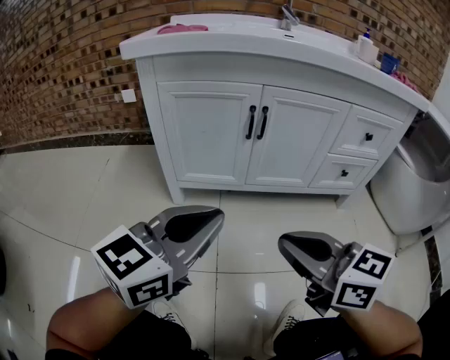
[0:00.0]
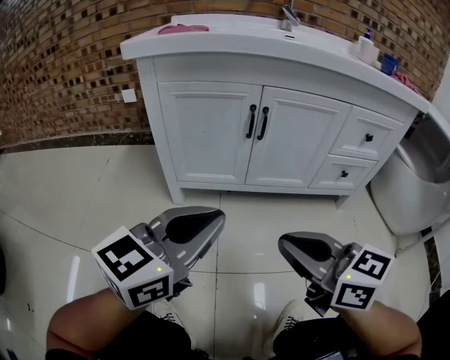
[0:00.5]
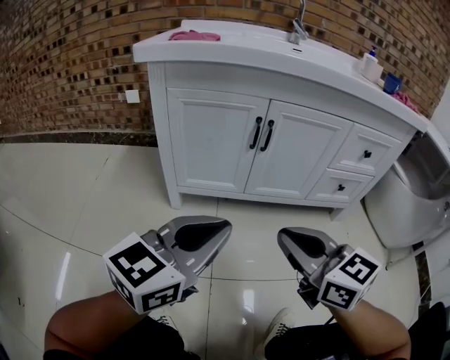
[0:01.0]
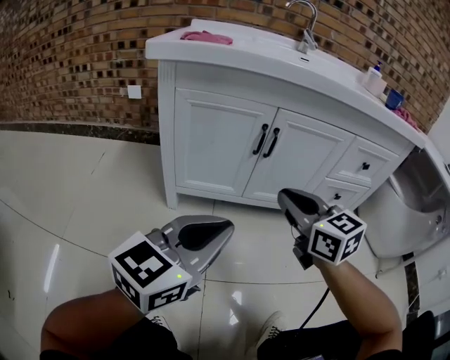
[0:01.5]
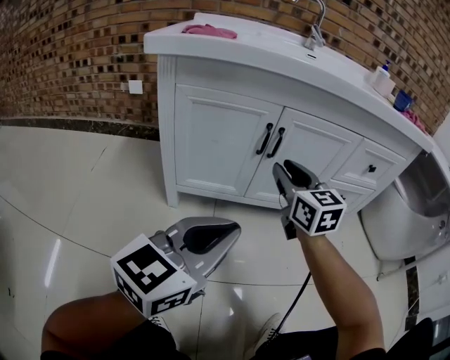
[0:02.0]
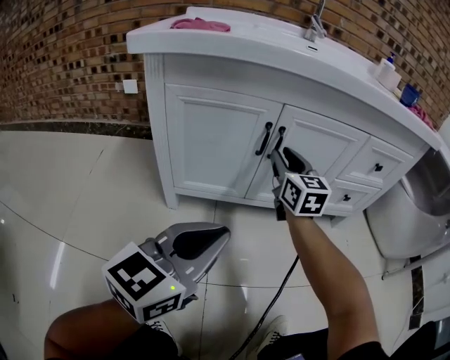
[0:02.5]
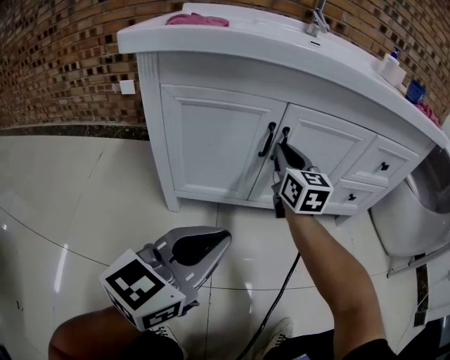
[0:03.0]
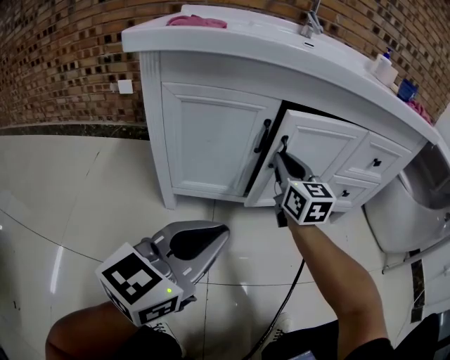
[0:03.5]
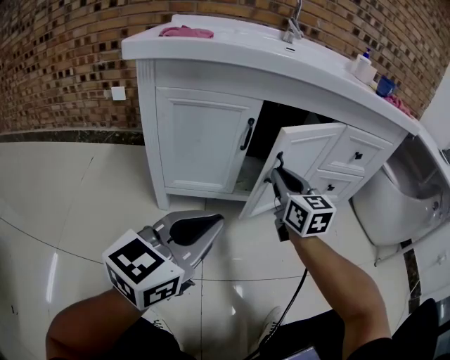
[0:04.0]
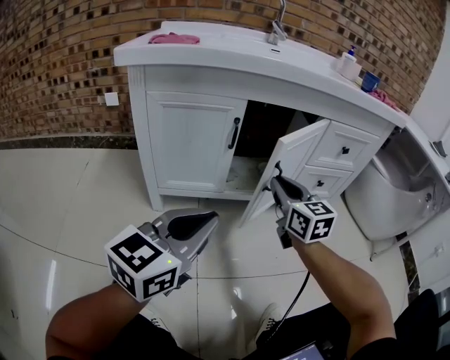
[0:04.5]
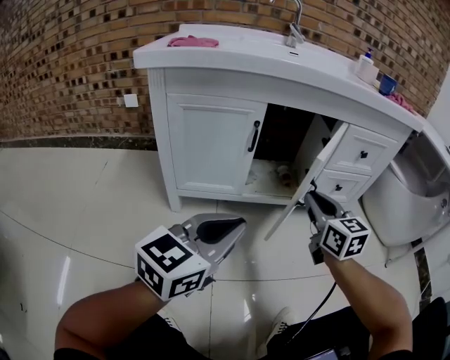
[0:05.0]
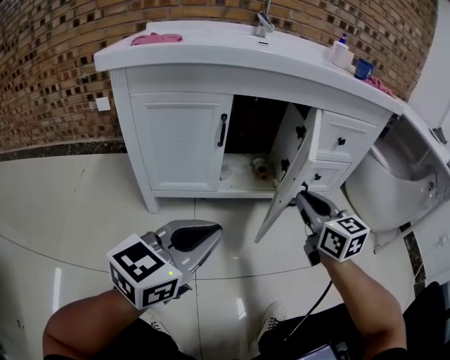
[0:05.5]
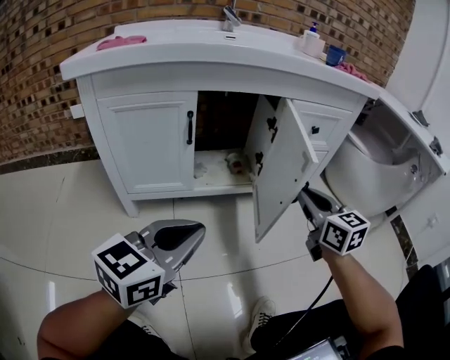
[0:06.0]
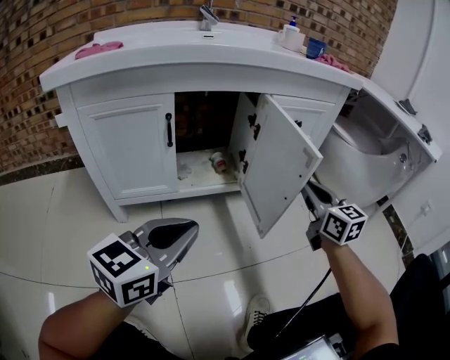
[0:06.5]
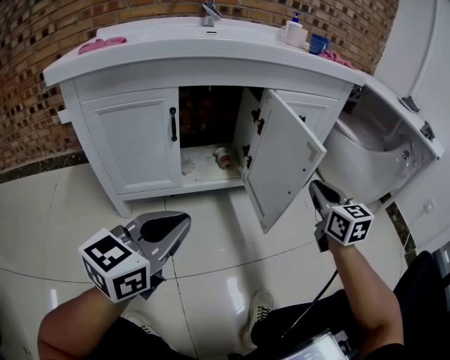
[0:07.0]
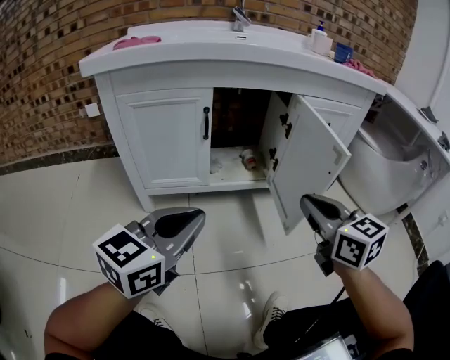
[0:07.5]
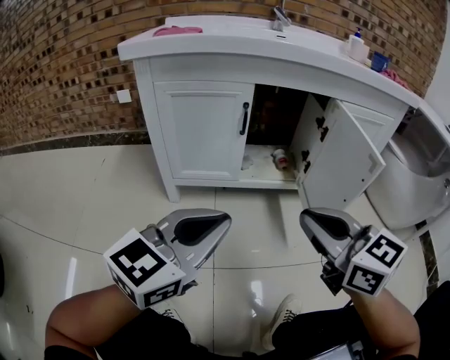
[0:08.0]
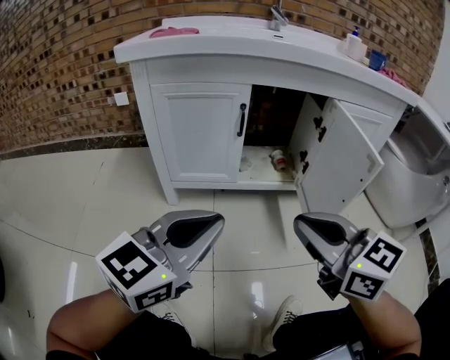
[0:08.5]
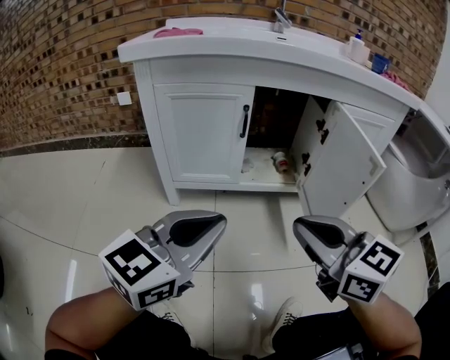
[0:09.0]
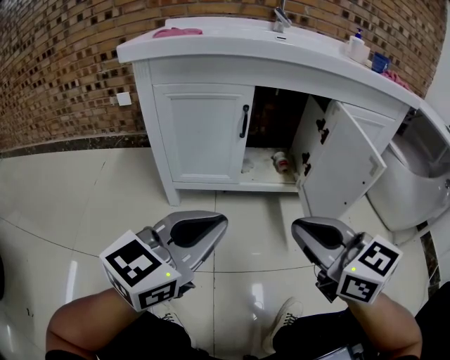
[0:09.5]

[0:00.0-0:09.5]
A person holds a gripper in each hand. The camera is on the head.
0:00.0 to 0:02.0: The right gripper shifts some 25 cm forward, rotates about 30 degrees, and opens its fingers.
0:02.0 to 0:04.0: The right gripper reaches some 10 cm forward, then returns.
0:04.0 to 0:05.5: The left gripper travels to the right by roughly 5 cm. The right gripper goes roughly 15 cm to the right and backward.
0:05.5 to 0:07.5: The right gripper moves backward, some 10 cm, and travels to the right and back again, roughly 15 cm each way.
0:07.5 to 0:09.5: The right gripper travels to the left and backward by about 15 cm.

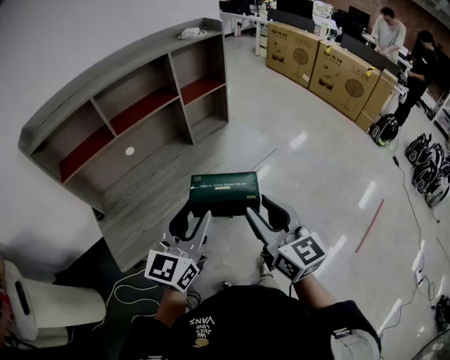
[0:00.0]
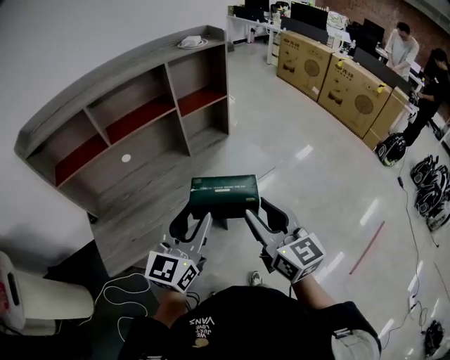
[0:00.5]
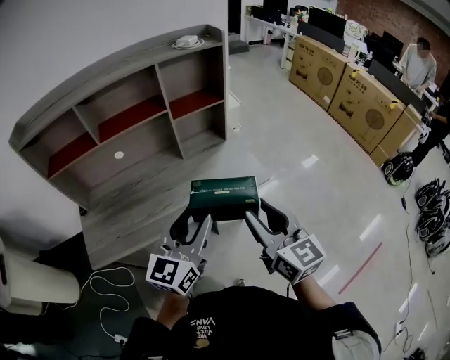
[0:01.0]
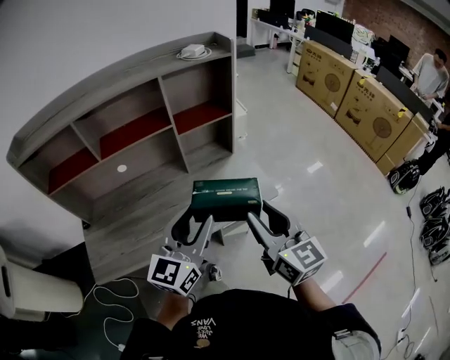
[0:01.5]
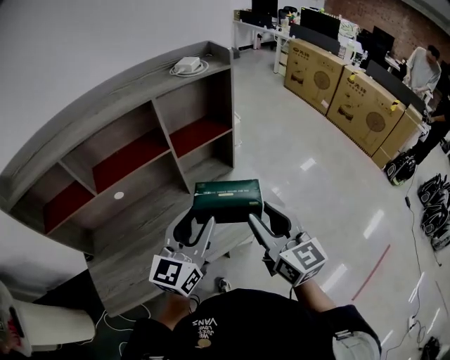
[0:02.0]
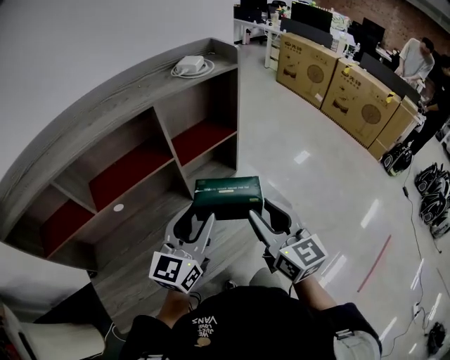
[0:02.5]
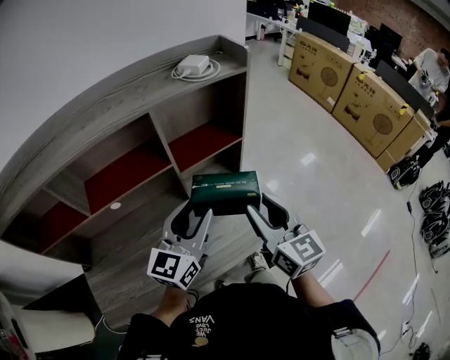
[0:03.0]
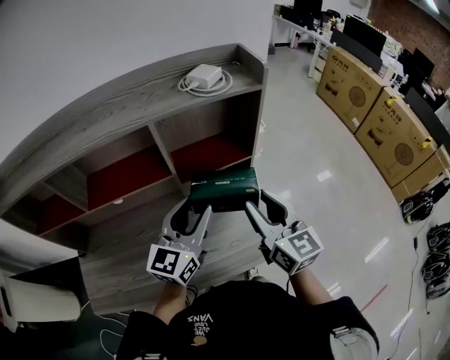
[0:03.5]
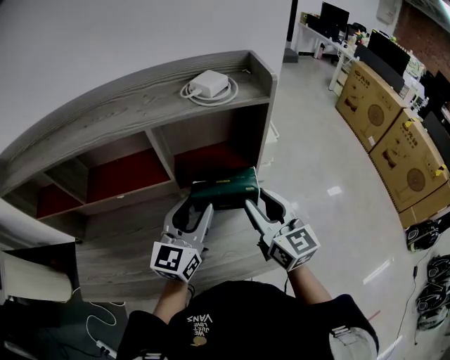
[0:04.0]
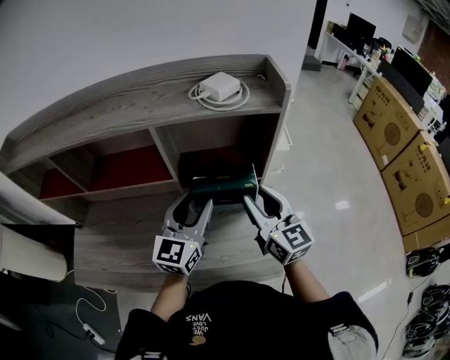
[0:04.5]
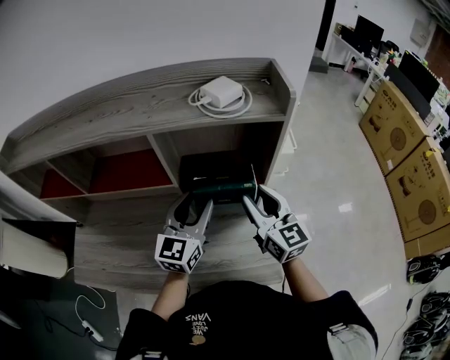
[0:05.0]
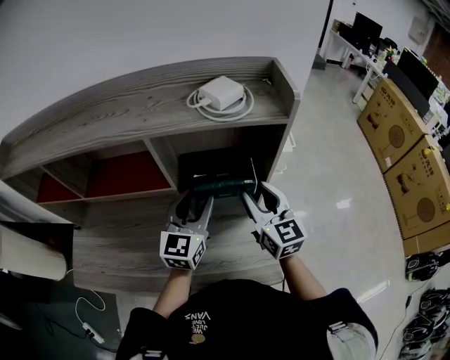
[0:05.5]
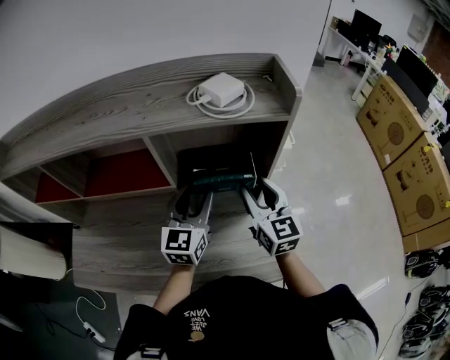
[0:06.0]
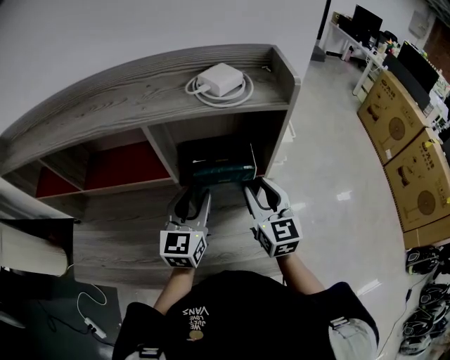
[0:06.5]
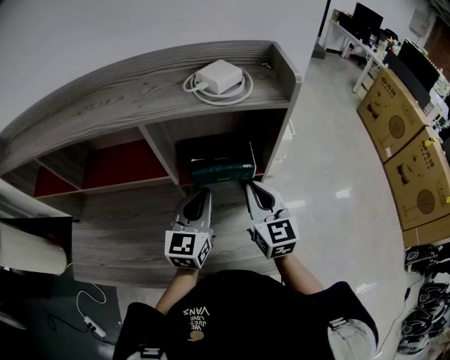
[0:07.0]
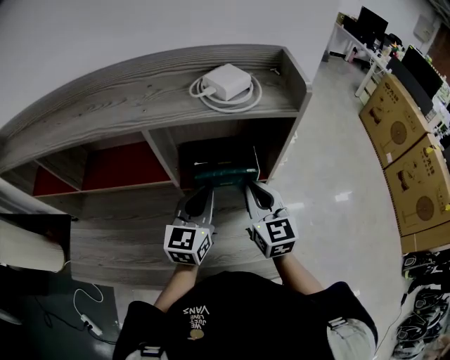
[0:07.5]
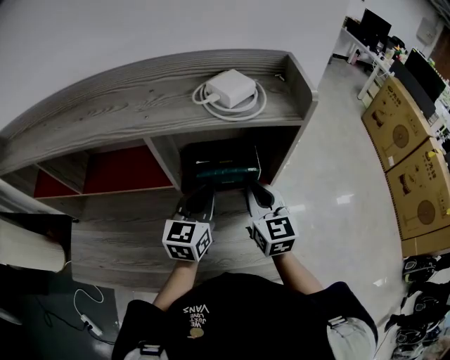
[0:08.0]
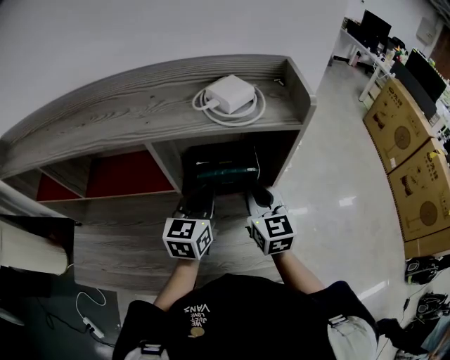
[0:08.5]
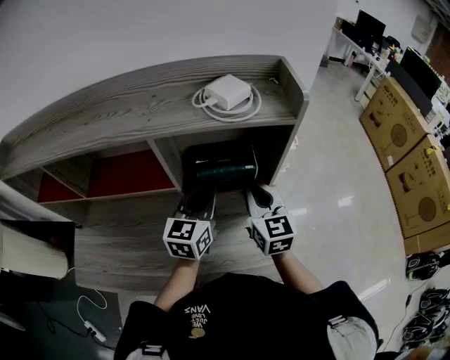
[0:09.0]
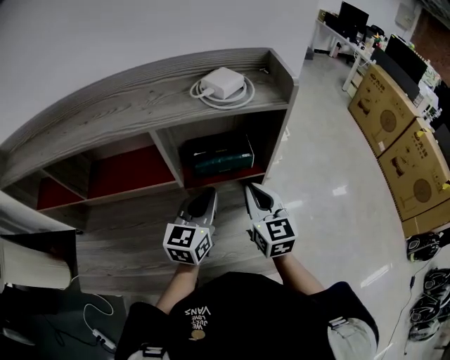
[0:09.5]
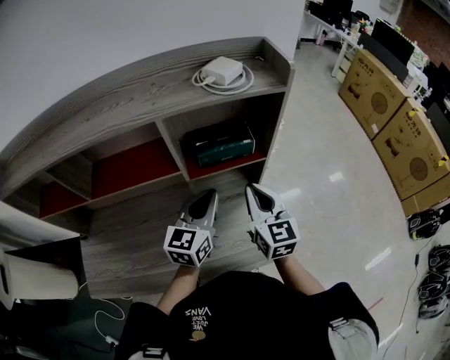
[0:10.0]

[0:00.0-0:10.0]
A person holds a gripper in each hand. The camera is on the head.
0:00.0 to 0:02.0: Both grippers move forward, about 25 cm.
0:02.0 to 0:04.0: The two grippers go some 25 cm forward. The left gripper changes its angle by some 20 degrees.
0:04.0 to 0:06.0: The grippers both shift forward by some 10 cm.
0:06.0 to 0:08.0: The right gripper closes. Meanwhile the left gripper closes.
0:08.0 to 0:10.0: Both grippers move backward, roughly 10 cm.

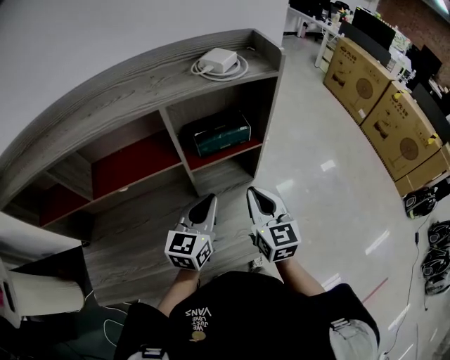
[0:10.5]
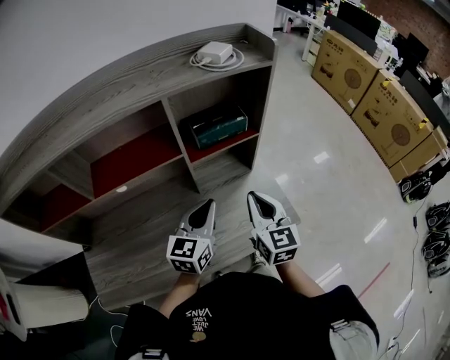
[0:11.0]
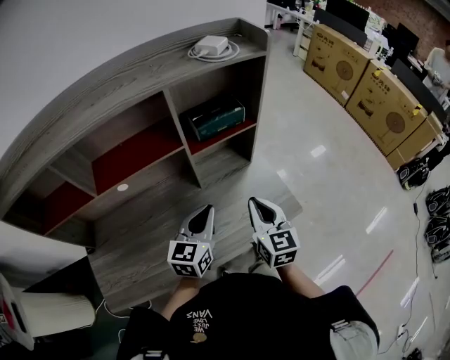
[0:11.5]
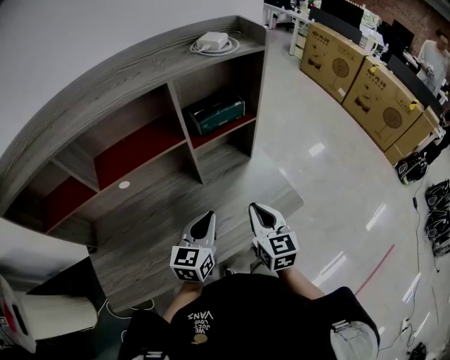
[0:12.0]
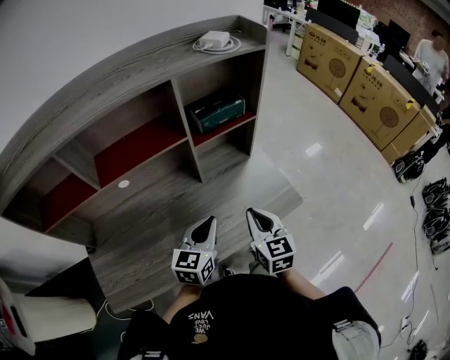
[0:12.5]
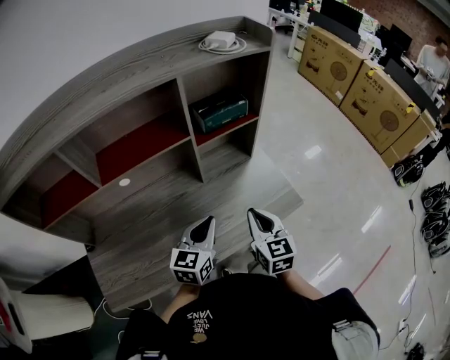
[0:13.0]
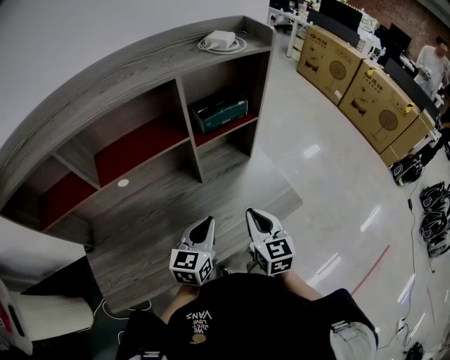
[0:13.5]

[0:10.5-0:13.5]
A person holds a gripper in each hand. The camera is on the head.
0:10.5 to 0:12.0: Both grippers move backward and downward, roughly 15 cm.
0:12.0 to 0:13.5: The grippers move only a little.

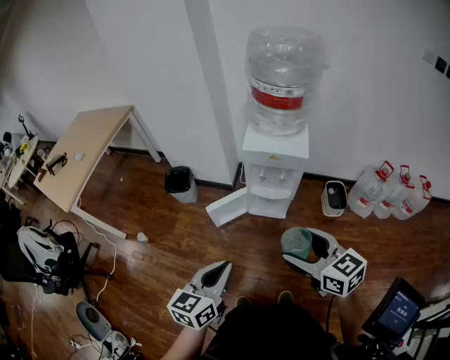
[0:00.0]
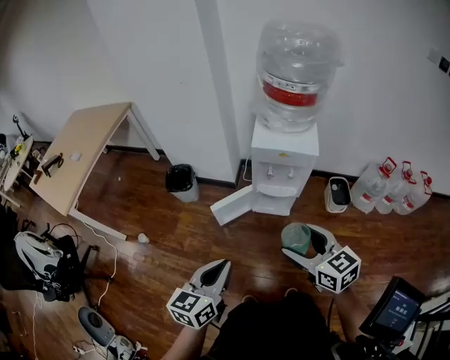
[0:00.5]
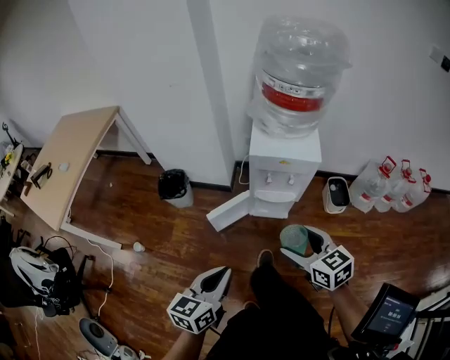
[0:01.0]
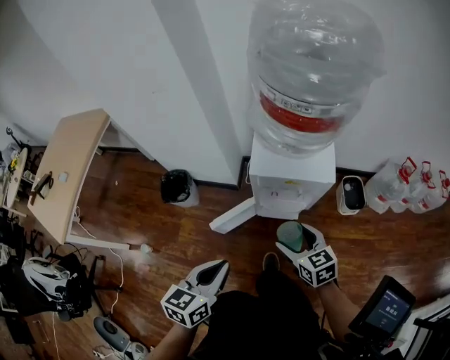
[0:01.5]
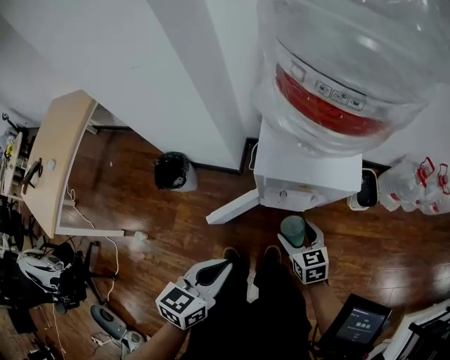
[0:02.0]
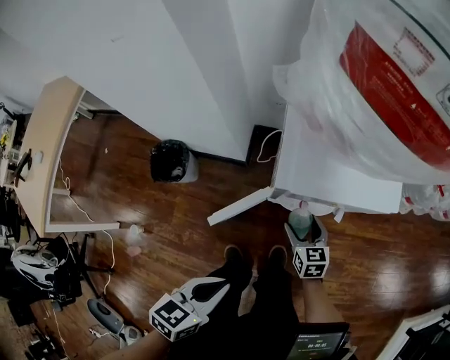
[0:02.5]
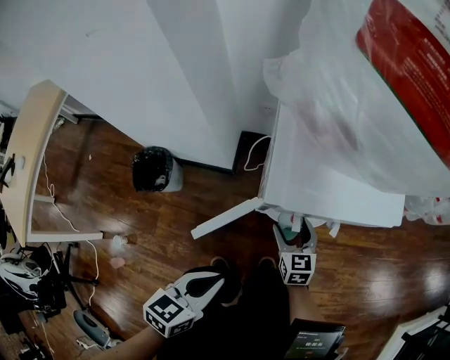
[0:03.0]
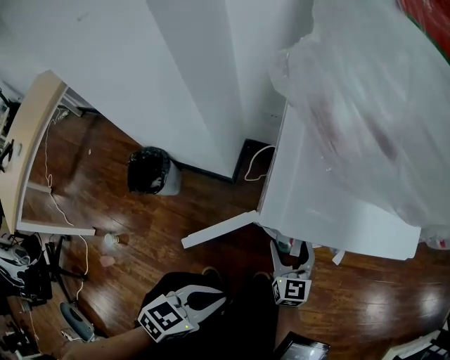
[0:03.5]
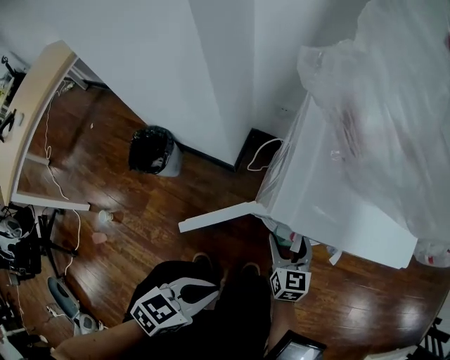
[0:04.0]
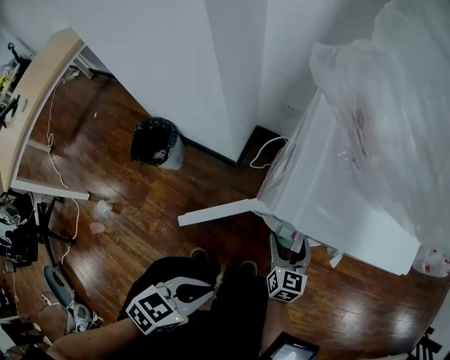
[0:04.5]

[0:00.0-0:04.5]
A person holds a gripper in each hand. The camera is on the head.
0:00.0 to 0:02.0: Both grippers move forward and downward, roughly 40 cm. The right gripper changes its angle by roughly 30 degrees.
0:02.0 to 0:04.5: The right gripper is displaced downward and forward by roughly 20 cm; the left gripper goes approximately 20 cm downward.
